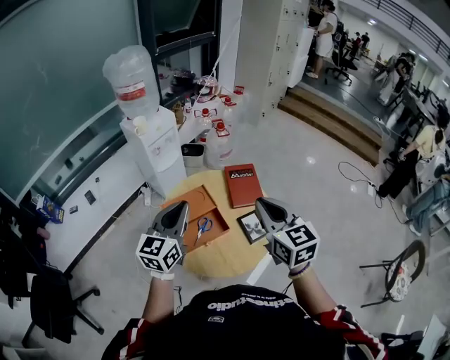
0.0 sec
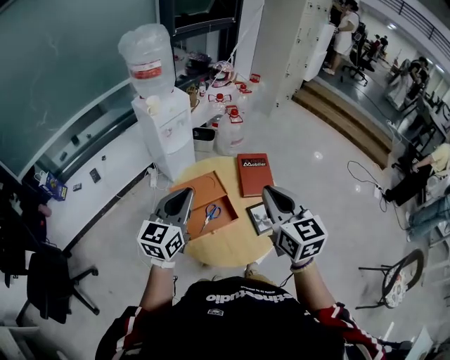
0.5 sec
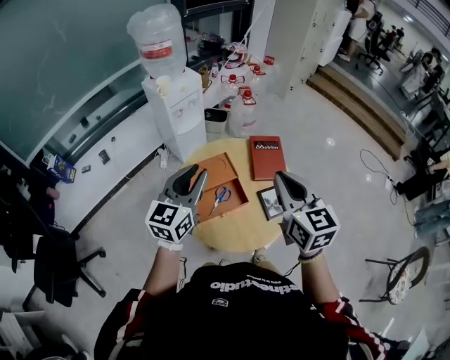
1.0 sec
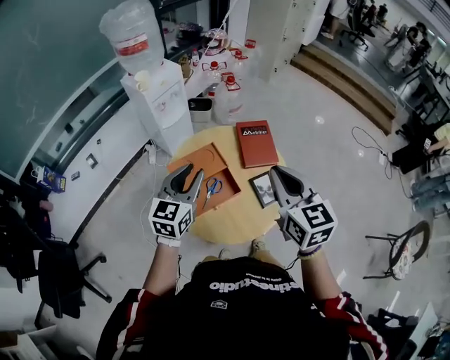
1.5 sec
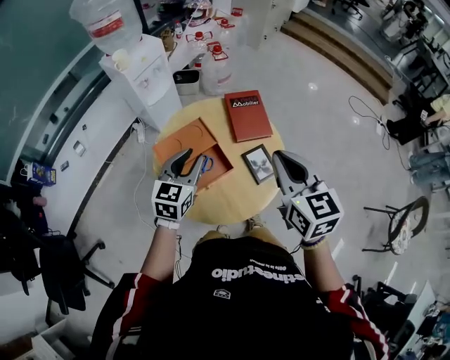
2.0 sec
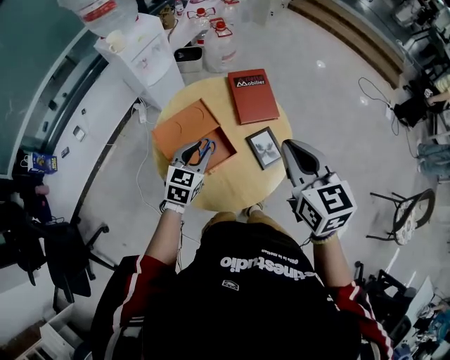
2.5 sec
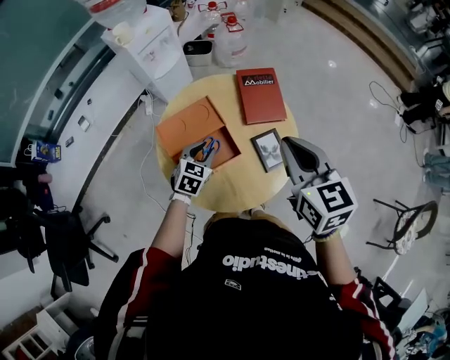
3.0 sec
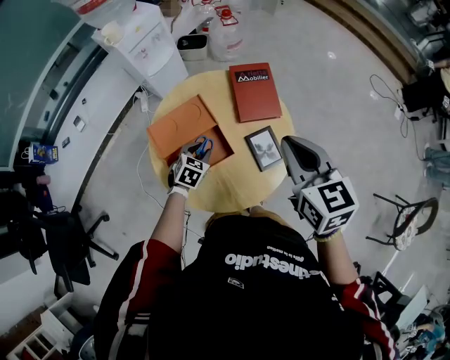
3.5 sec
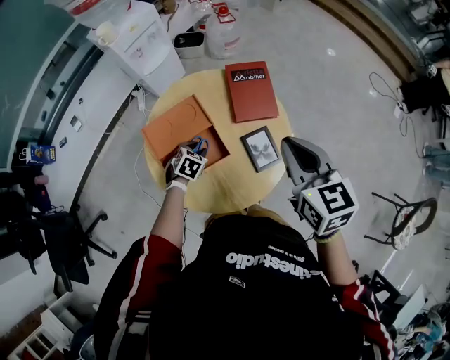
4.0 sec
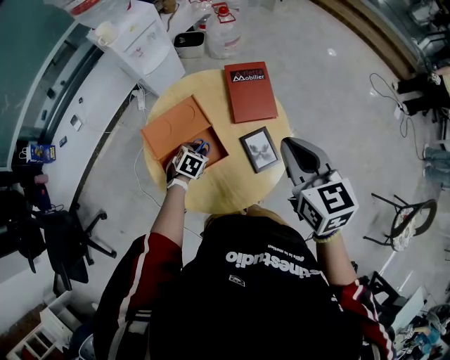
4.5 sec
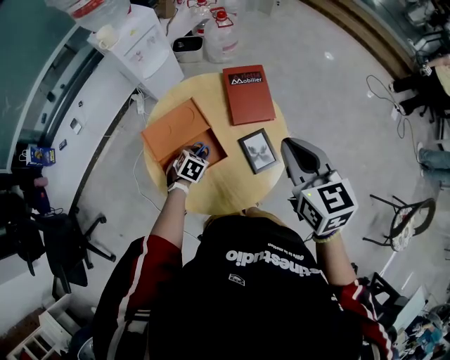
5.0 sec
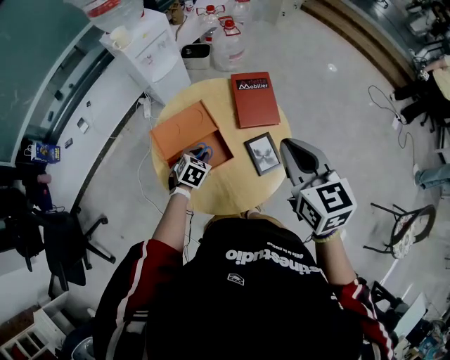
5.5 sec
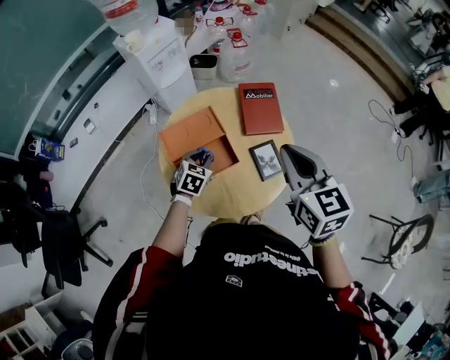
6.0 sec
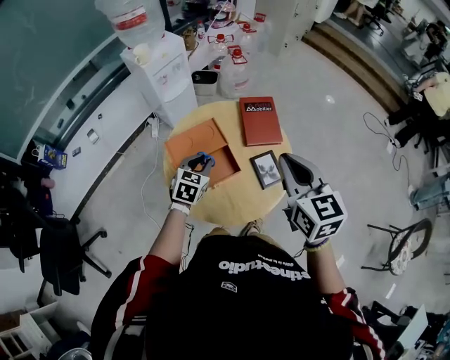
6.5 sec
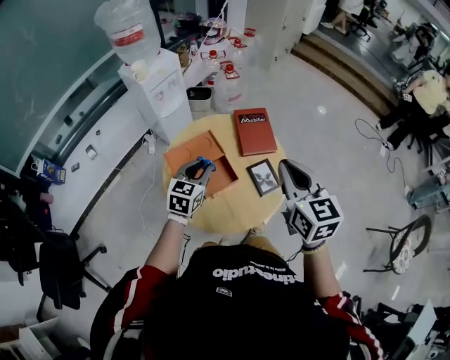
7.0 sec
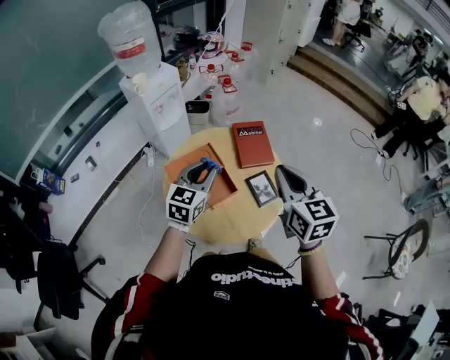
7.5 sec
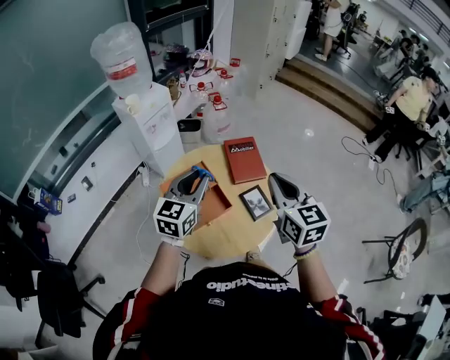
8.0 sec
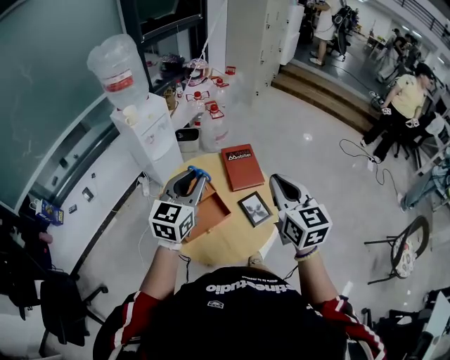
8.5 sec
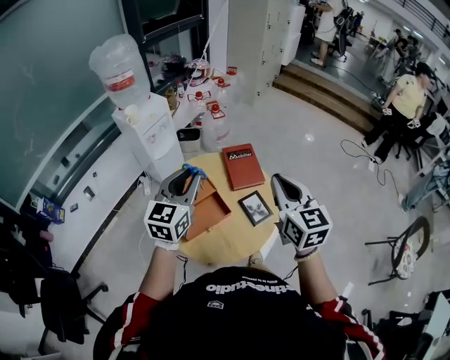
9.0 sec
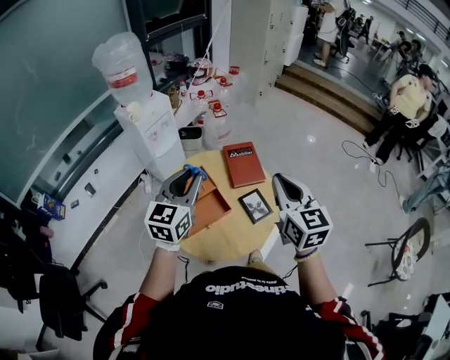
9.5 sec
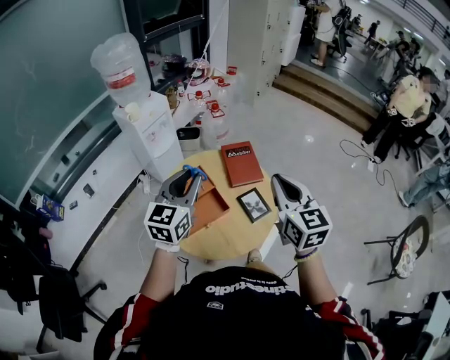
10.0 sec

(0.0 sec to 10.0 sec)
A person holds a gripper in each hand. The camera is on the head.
0.0 sec - 2.0 sec: The left gripper goes some 15 cm downward, and opens up; the right gripper moves downward, some 5 cm.
2.0 sec - 4.0 sec: The right gripper heads forward and downward, covering some 10 cm. Meanwhile the left gripper travels downward by some 30 cm, and tips its fingers downward by some 40 degrees.
4.0 sec - 6.0 sec: The right gripper changes place by some 5 cm; the left gripper is displaced upward by some 10 cm.
6.0 sec - 8.0 sec: The left gripper shifts about 30 cm upward, and points its fingers roughly 40 degrees further upward.
8.0 sec - 10.0 sec: The left gripper goes roughly 5 cm upward.

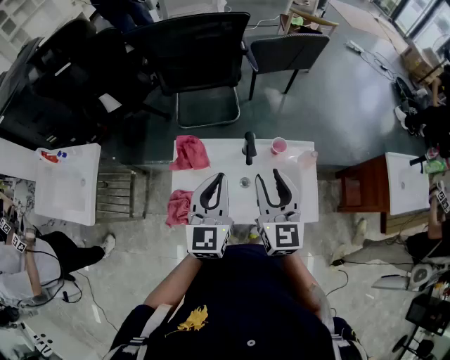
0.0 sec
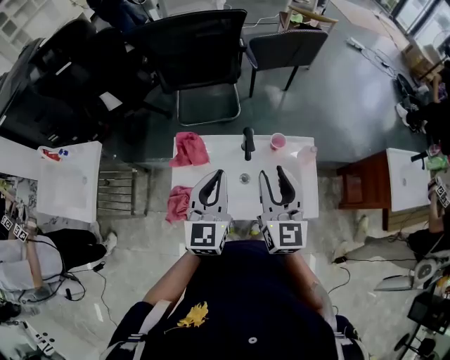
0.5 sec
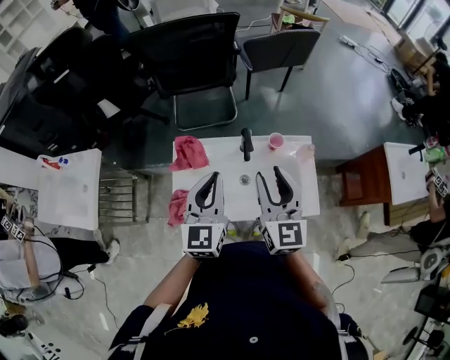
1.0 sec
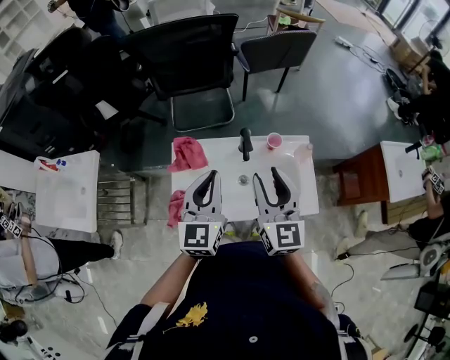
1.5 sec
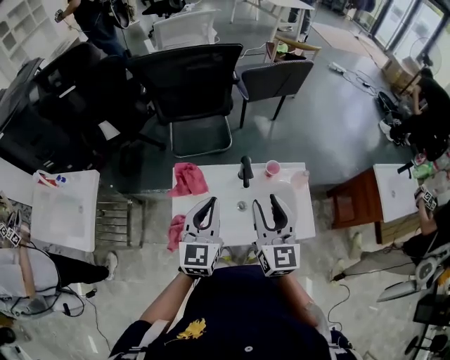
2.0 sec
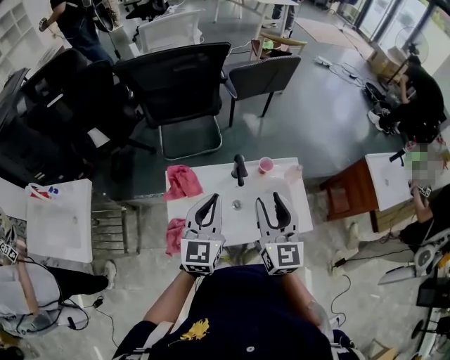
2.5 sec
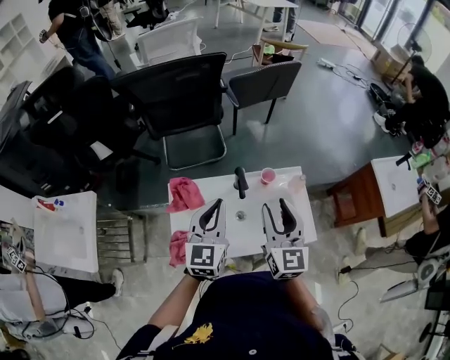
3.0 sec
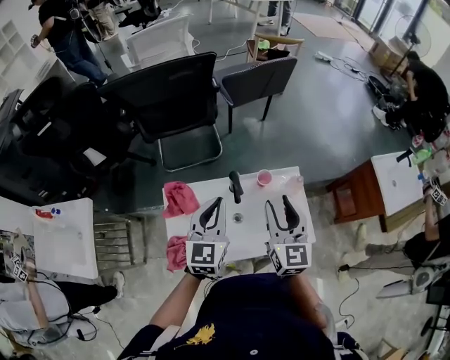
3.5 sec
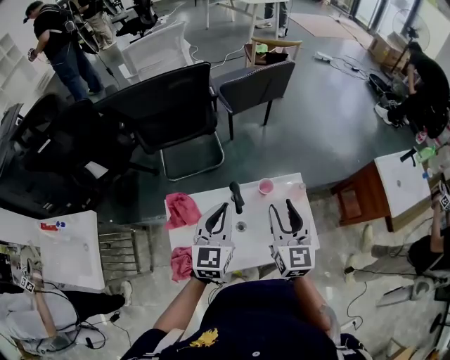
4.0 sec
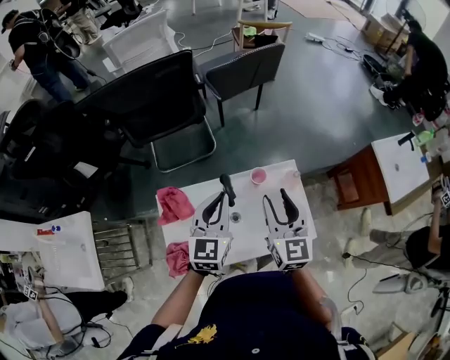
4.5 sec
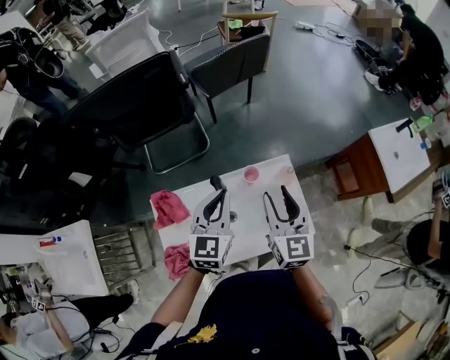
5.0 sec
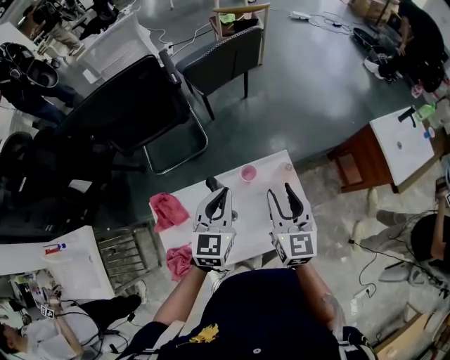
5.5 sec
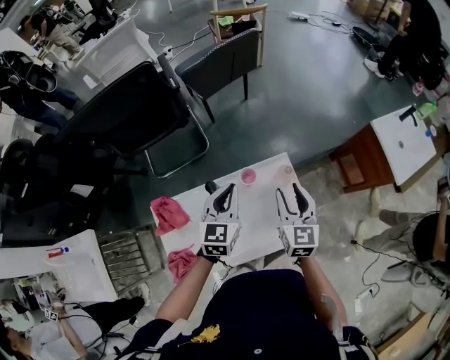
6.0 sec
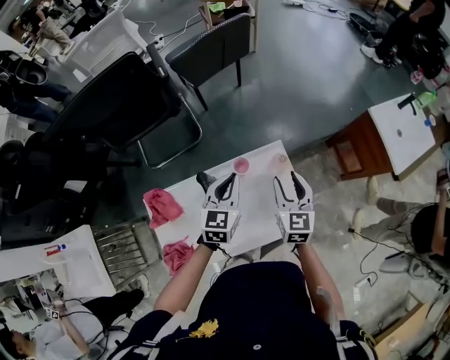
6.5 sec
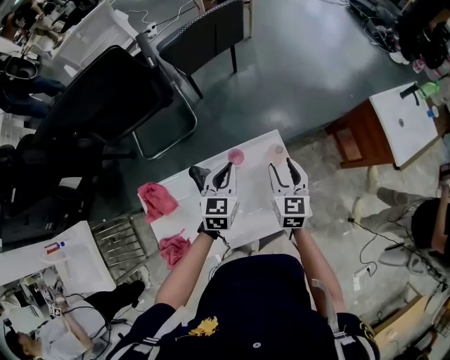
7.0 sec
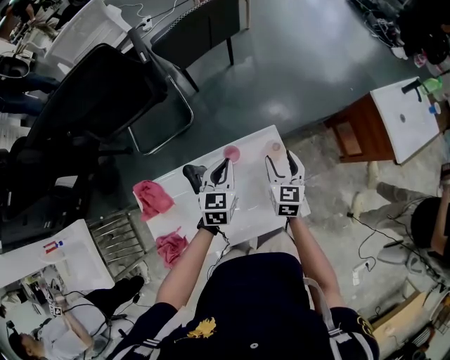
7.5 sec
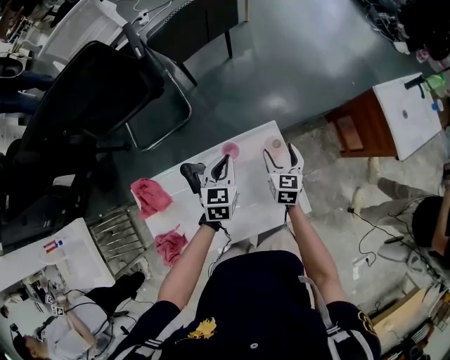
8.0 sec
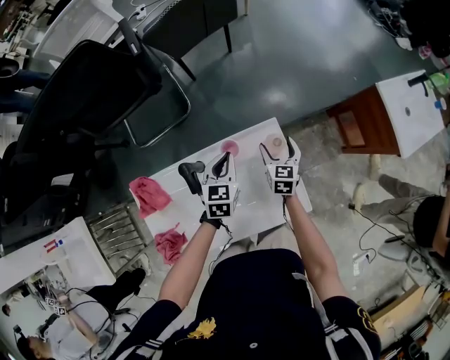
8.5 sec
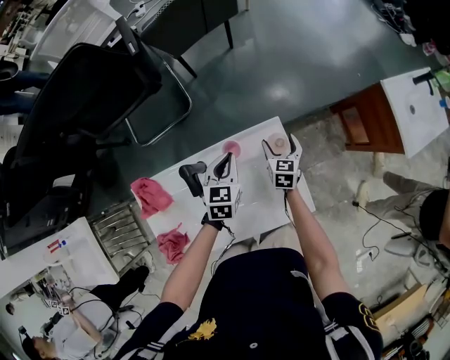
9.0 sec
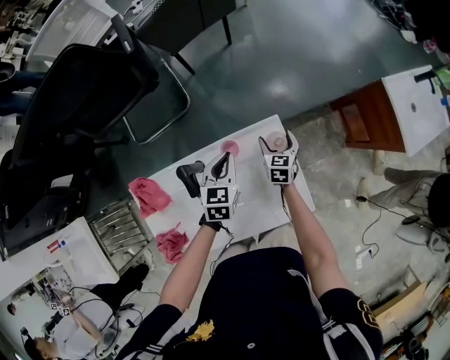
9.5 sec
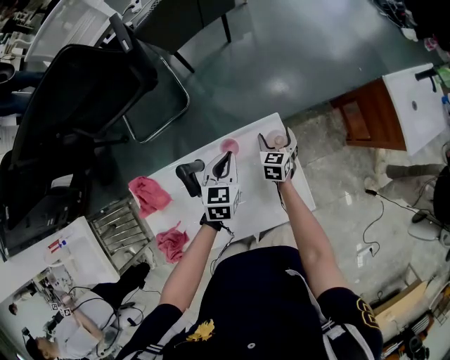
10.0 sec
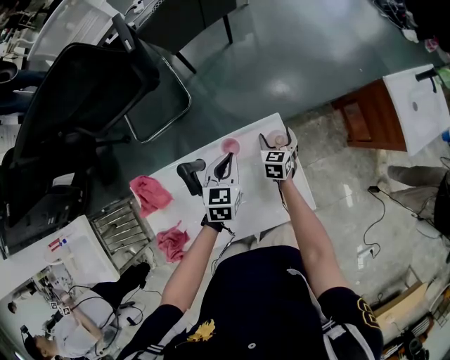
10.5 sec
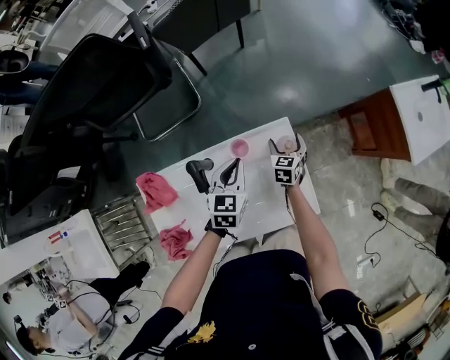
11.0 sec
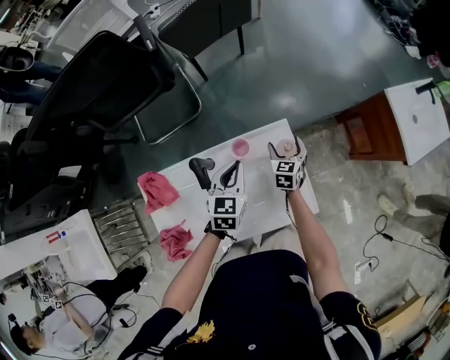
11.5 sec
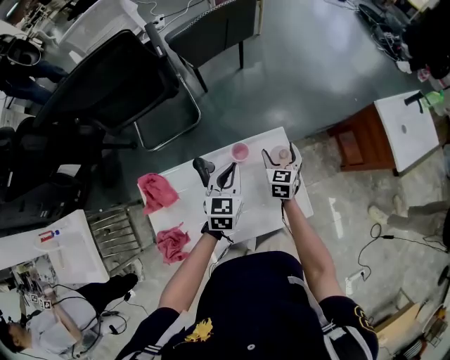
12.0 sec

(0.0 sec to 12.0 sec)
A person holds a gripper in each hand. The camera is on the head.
0.0 sec - 2.0 sec: The grippers stay close to where they were, moving slightly.
2.0 sec - 4.0 sec: Both grippers move forward and to the right, some 15 cm.
4.0 sec - 6.0 sec: The right gripper travels to the right, downward and forward by some 15 cm; the left gripper goes some 15 cm to the right, forward and downward.
6.0 sec - 8.0 sec: The right gripper goes some 20 cm downward and forward, and opens. Meanwhile the left gripper travels downward by about 15 cm.
8.0 sec - 10.0 sec: The right gripper shifts about 10 cm downward and forward.
10.0 sec - 12.0 sec: The left gripper moves upward and backward, about 10 cm, while the right gripper shifts about 10 cm upward.

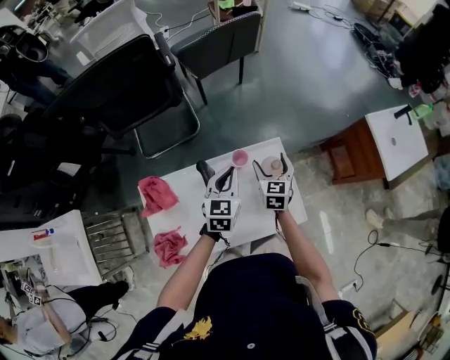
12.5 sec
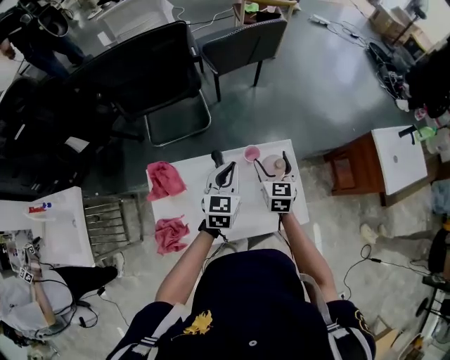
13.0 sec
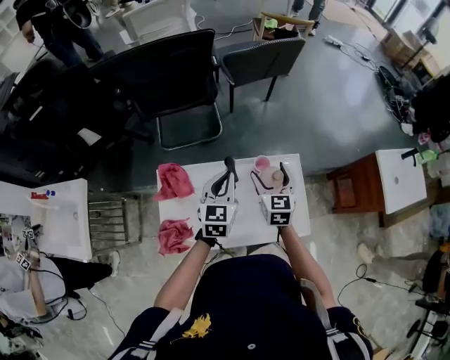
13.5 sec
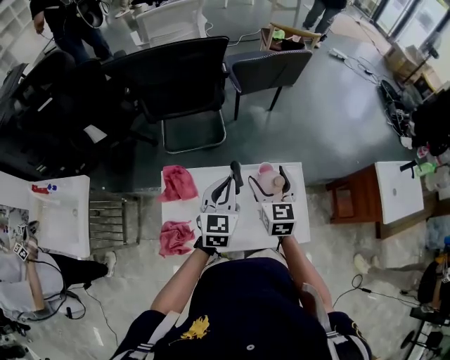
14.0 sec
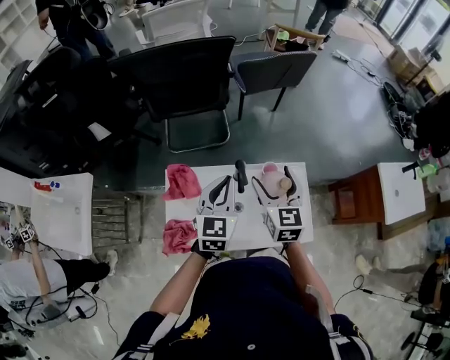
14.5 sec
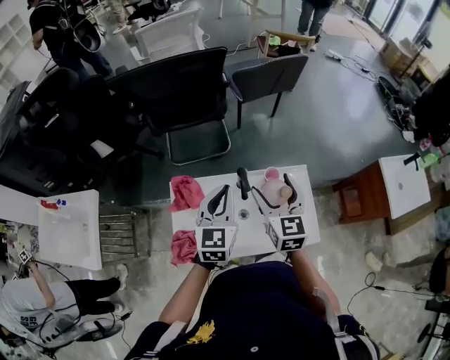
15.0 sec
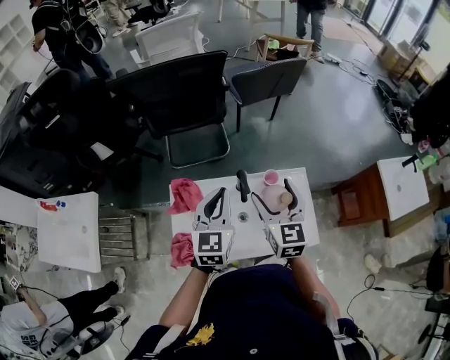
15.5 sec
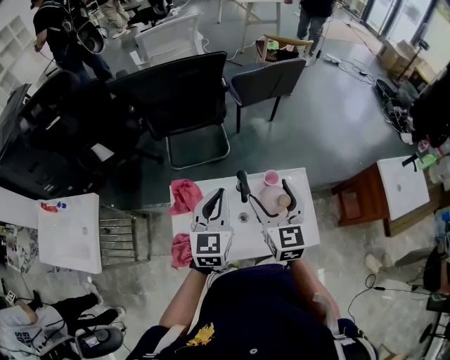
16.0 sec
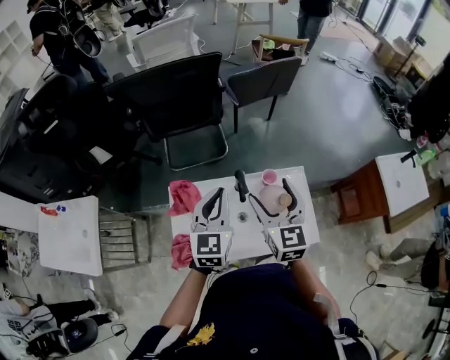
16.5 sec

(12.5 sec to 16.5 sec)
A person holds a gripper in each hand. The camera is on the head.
12.5 sec - 14.5 sec: The right gripper moves upward and to the left, about 25 cm, and turns by some 20 degrees; the left gripper goes roughly 20 cm to the left, upward and backward.
14.5 sec - 16.5 sec: The right gripper shifts about 5 cm upward.

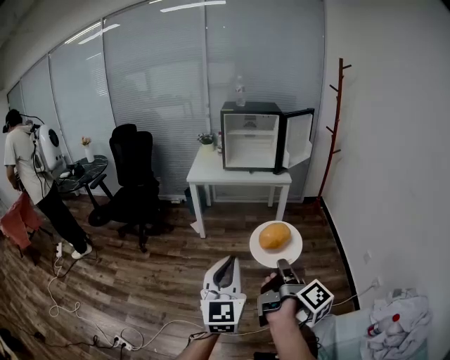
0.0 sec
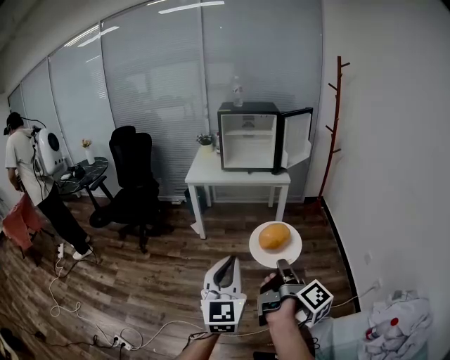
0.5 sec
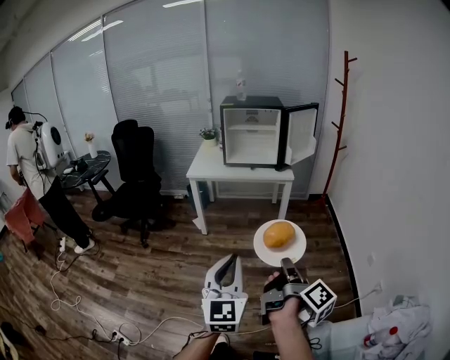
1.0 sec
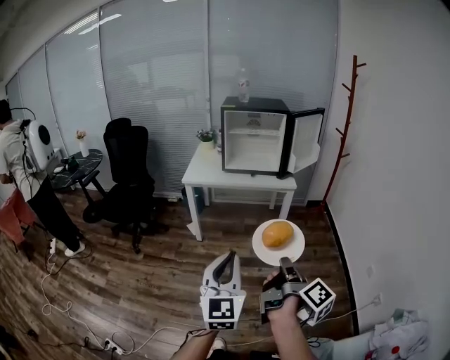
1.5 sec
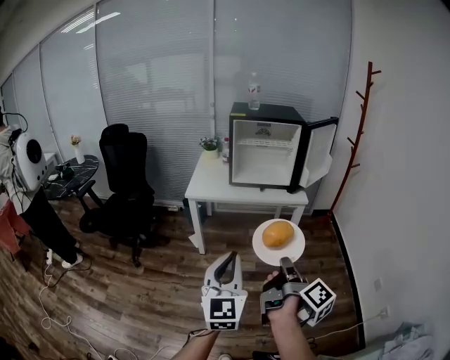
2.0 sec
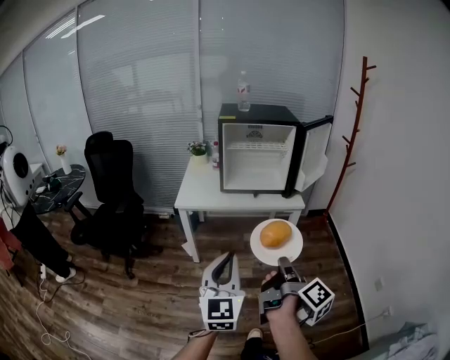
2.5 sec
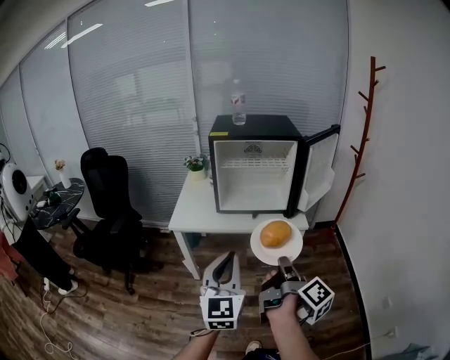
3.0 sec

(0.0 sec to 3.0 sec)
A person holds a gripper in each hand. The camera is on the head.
0.0 sec - 1.5 sec: The left gripper changes place by roughly 15 cm.
1.5 sec - 3.0 sec: The left gripper moves approximately 35 cm.
